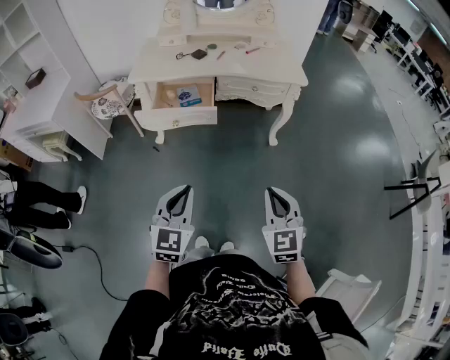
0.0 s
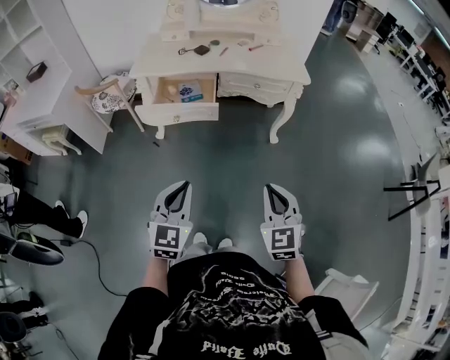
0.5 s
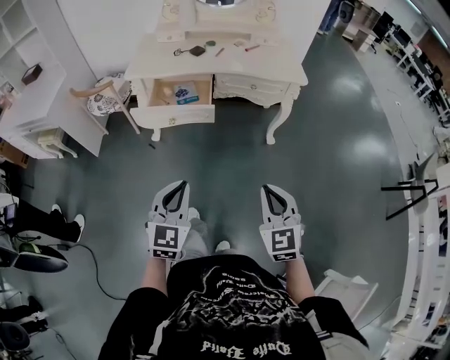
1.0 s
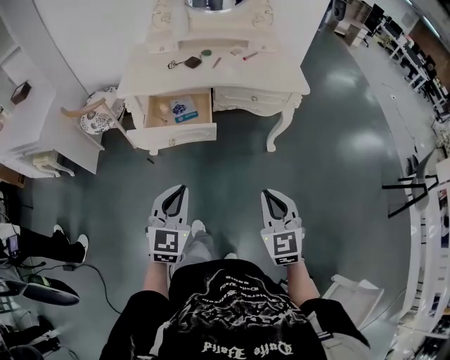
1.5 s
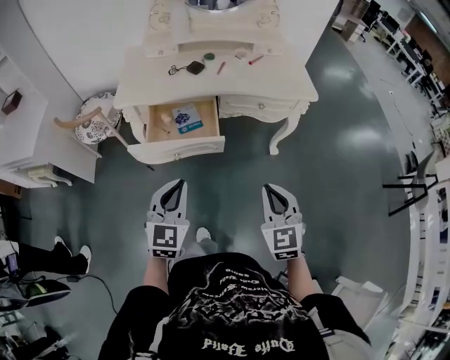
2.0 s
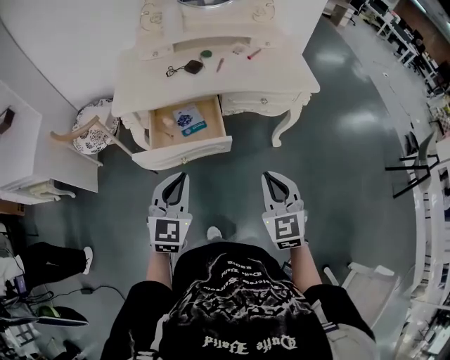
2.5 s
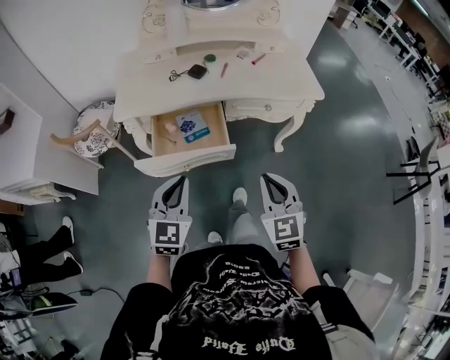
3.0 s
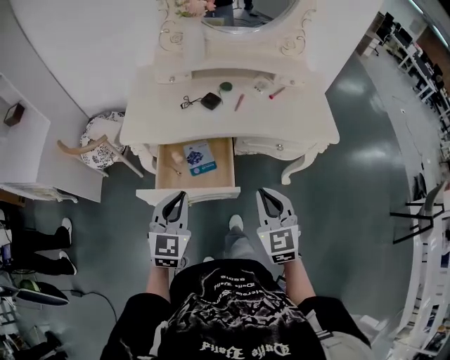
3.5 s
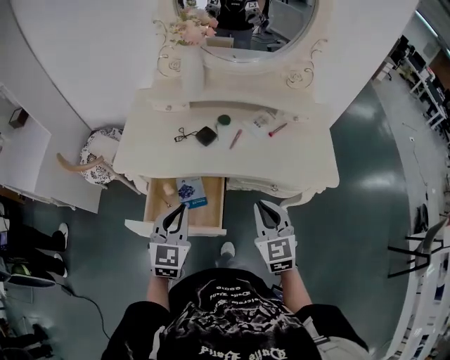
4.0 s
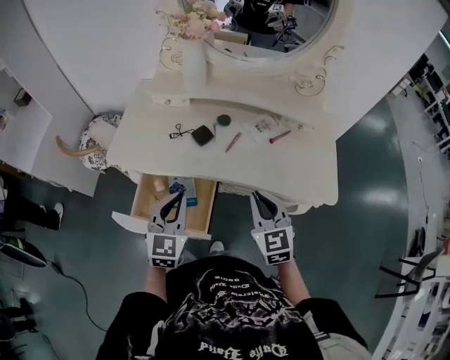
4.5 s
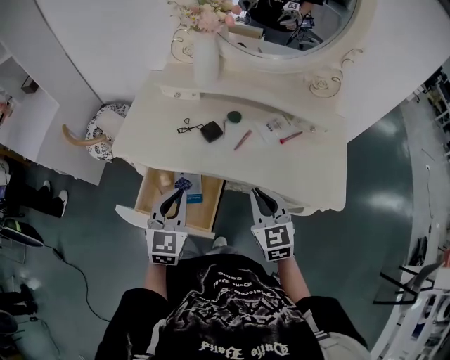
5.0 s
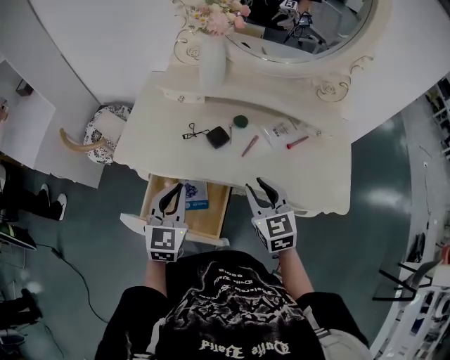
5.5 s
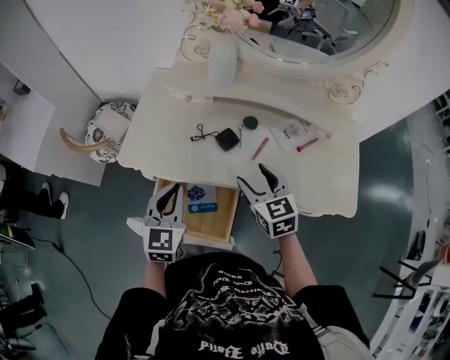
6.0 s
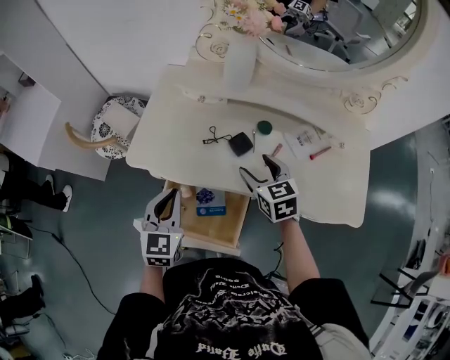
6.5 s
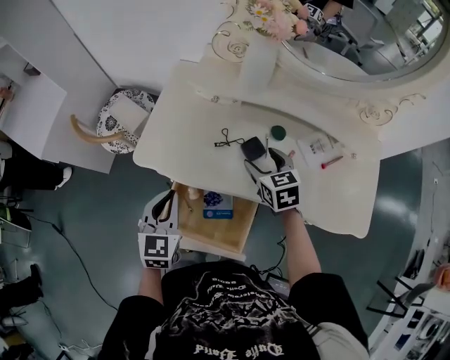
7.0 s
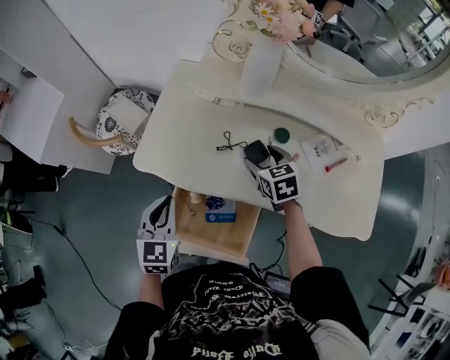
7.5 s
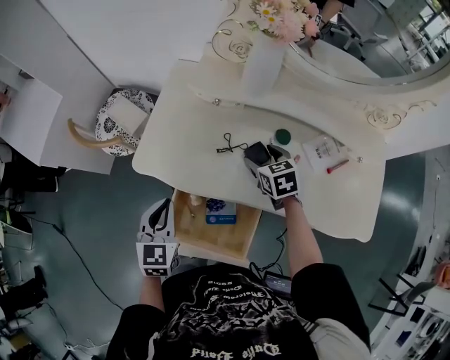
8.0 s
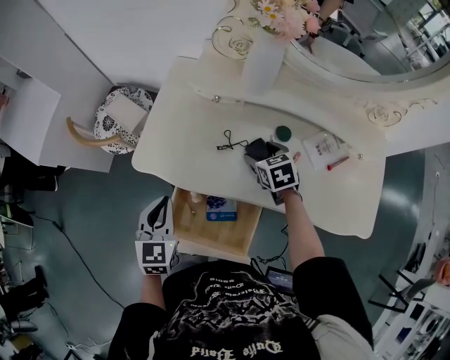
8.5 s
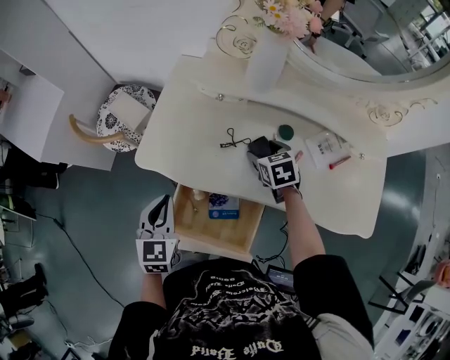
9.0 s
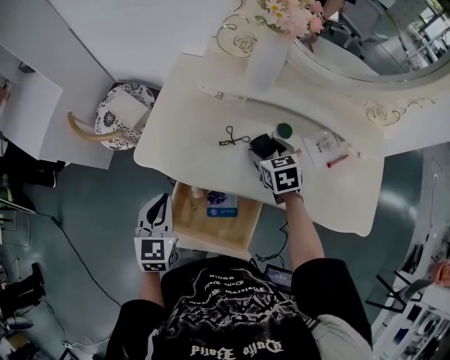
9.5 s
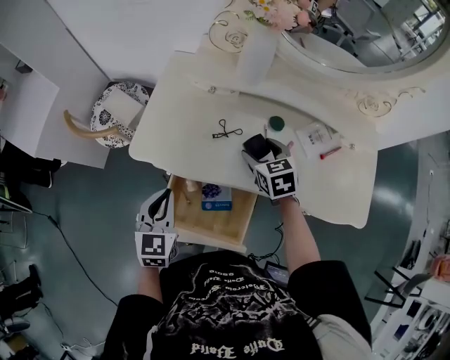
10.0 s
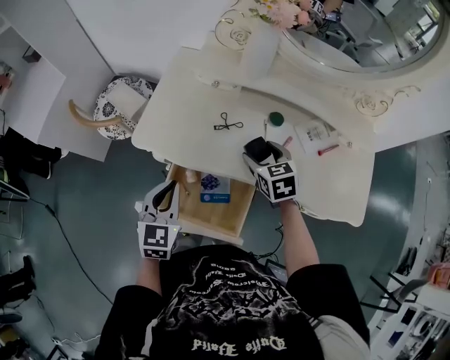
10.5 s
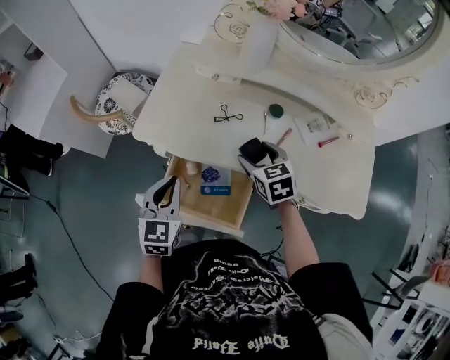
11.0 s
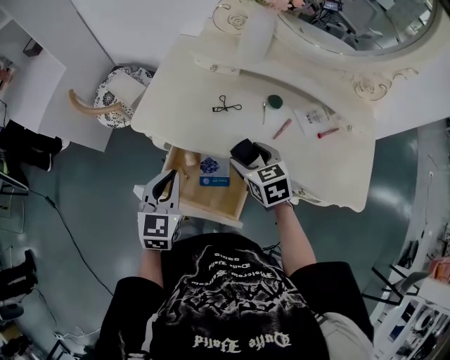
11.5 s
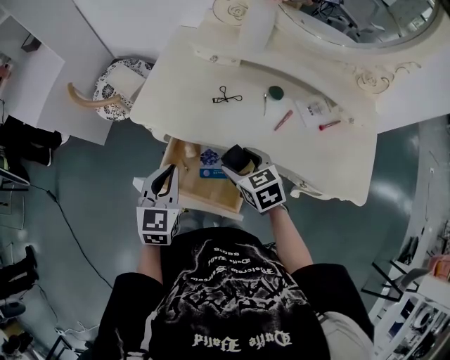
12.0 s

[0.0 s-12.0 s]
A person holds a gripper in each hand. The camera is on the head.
0.0 to 2.0 s: The grippers both shift forward and to the left by about 20 cm.
2.0 to 4.0 s: The grippers both shift forward by roughly 30 cm.
4.0 to 6.0 s: The left gripper heads forward, covering some 10 cm. The right gripper travels forward by roughly 20 cm, and opens its fingers.
6.0 to 8.0 s: The left gripper goes about 10 cm to the left. Meanwhile the right gripper moves forward and downward, some 15 cm.
8.0 to 10.0 s: The grippers move only a little.
10.0 to 12.0 s: The right gripper travels backward and to the left by about 15 cm. The left gripper shifts some 5 cm backward.

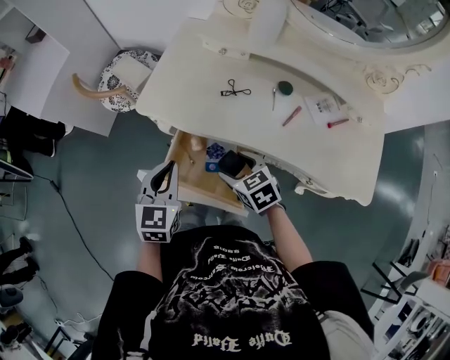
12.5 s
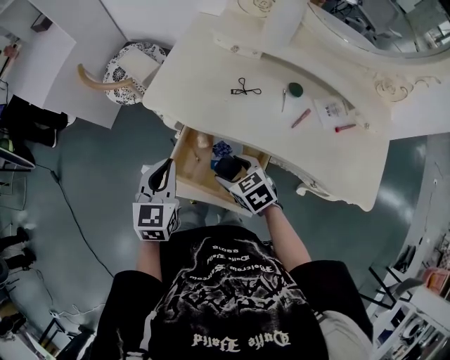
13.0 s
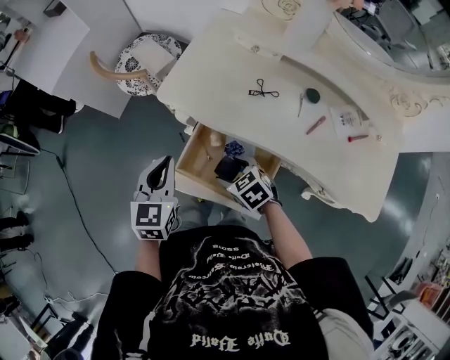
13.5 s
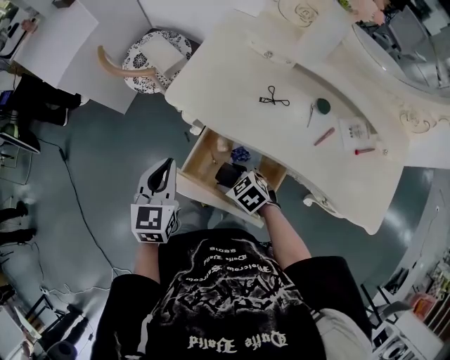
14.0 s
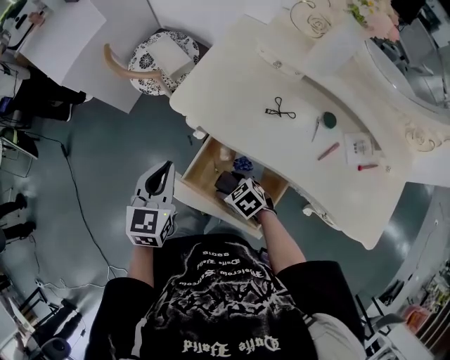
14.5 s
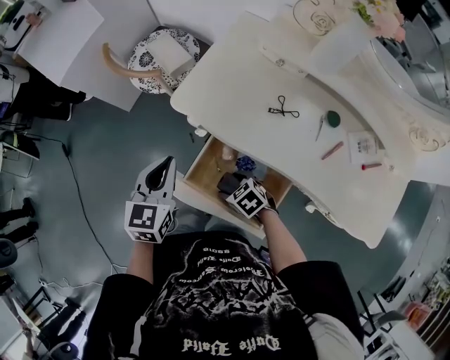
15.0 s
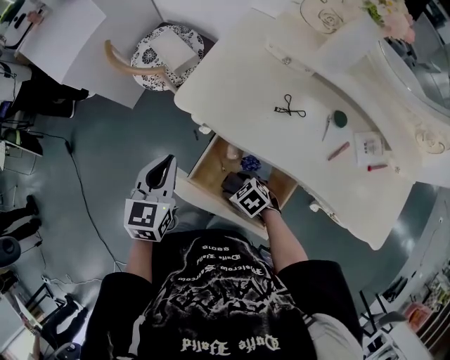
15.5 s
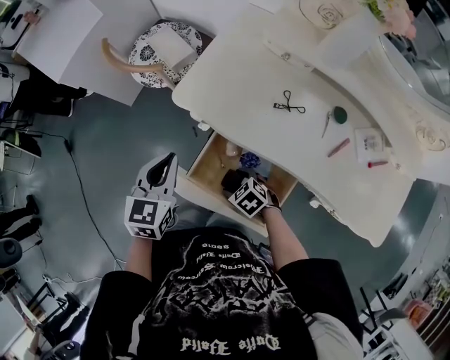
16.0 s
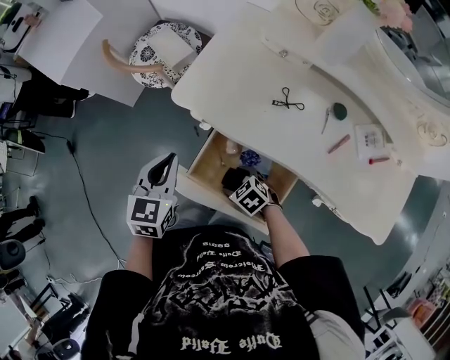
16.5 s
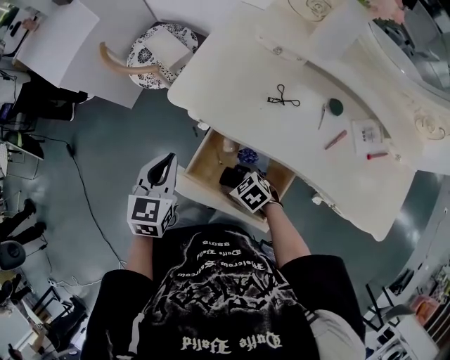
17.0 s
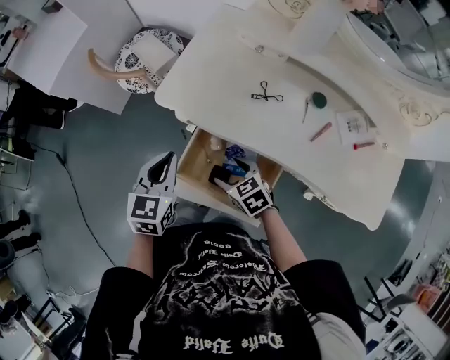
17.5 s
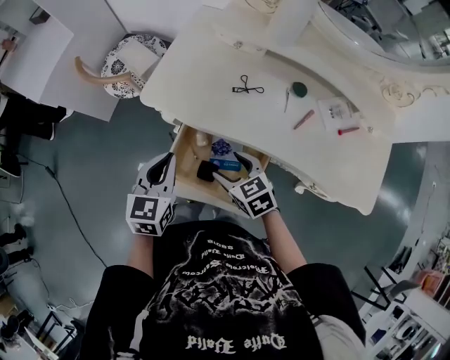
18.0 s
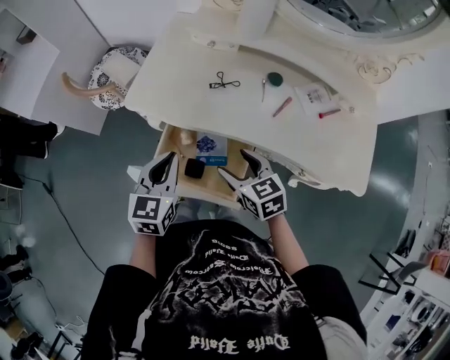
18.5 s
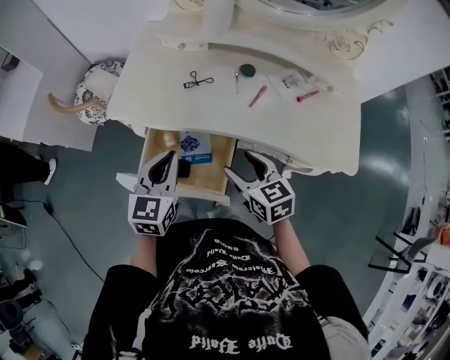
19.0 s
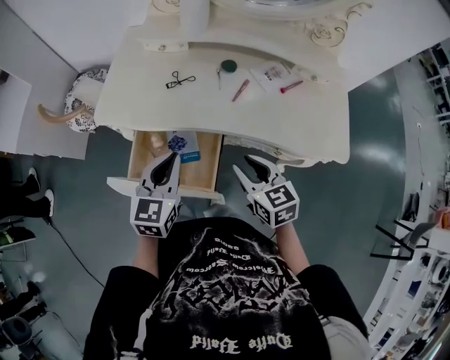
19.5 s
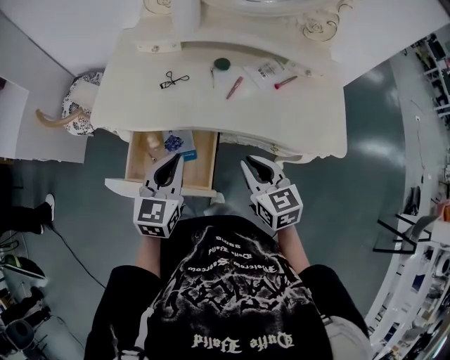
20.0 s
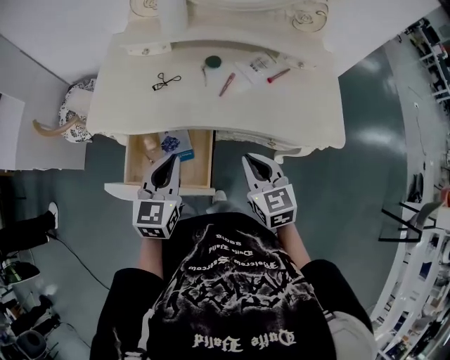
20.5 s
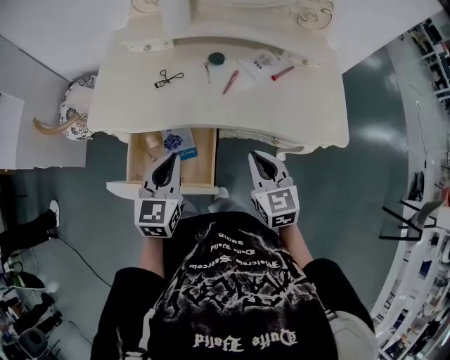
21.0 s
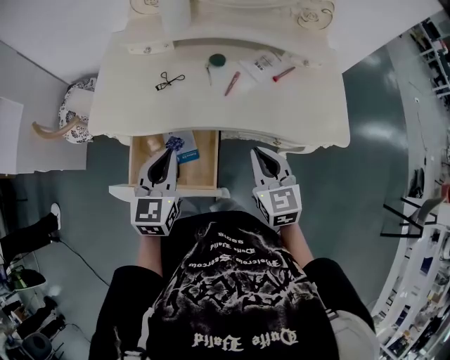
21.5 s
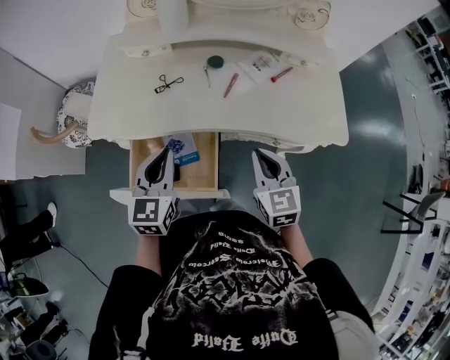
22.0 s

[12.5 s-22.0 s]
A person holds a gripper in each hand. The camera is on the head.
12.5 to 14.5 s: The left gripper goes some 10 cm to the left and forward. The right gripper moves downward and to the left, some 15 cm, and turns by about 30 degrees.
14.5 to 16.5 s: The grippers make only small movements.
16.5 to 18.0 s: The right gripper shifts about 15 cm upward and to the right, and changes its angle by approximately 30 degrees, while the left gripper moves to the right, roughly 5 cm.
18.0 to 20.0 s: The left gripper moves approximately 20 cm, and rotates roughly 20 degrees. The right gripper ends up about 25 cm from where it was, turns by about 30 degrees, and closes its fingers.
20.0 to 22.0 s: The grippers stay close to where they were, moving slightly.

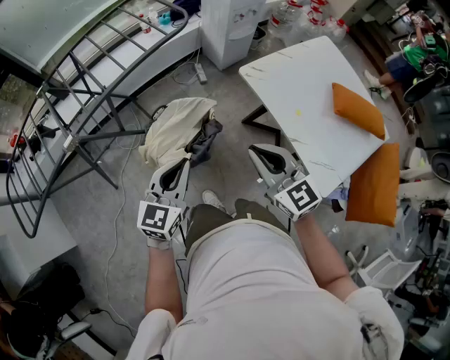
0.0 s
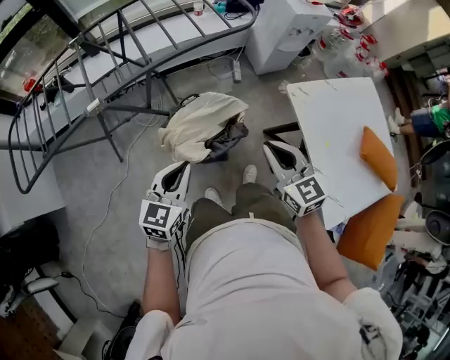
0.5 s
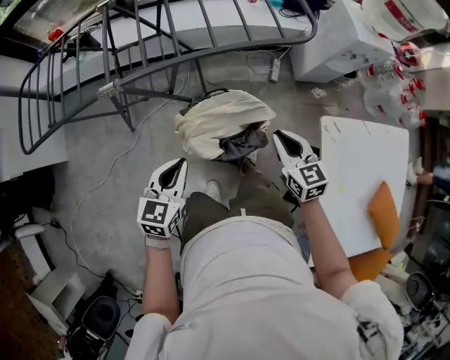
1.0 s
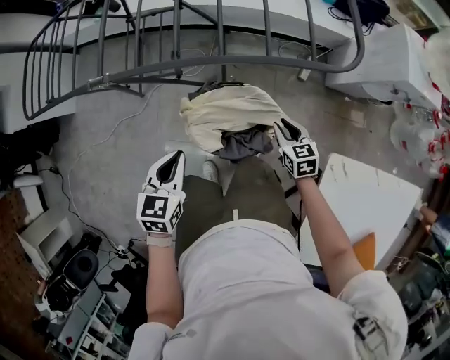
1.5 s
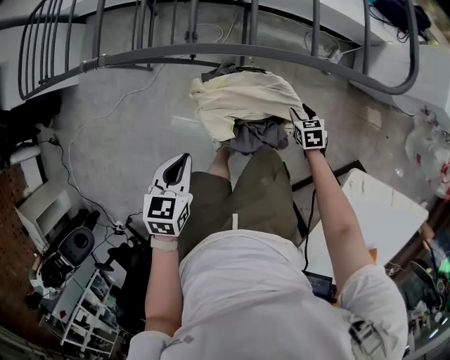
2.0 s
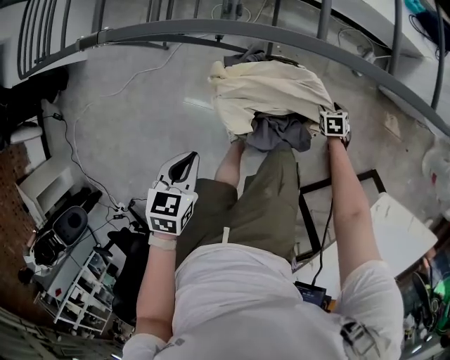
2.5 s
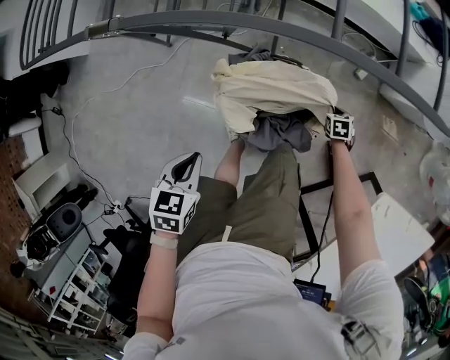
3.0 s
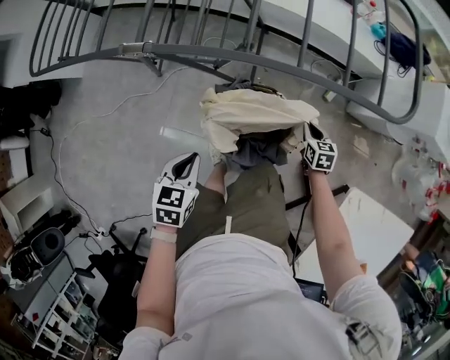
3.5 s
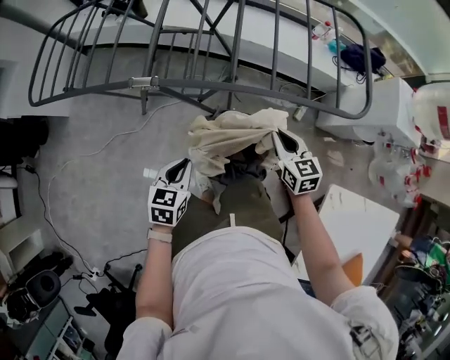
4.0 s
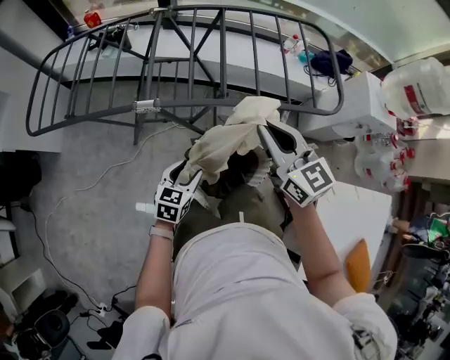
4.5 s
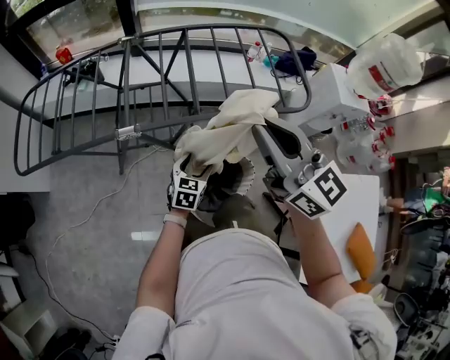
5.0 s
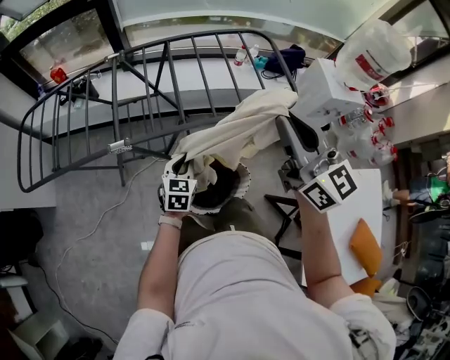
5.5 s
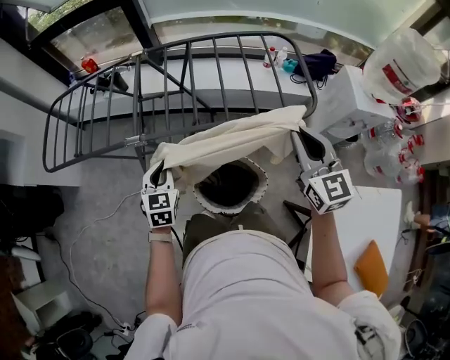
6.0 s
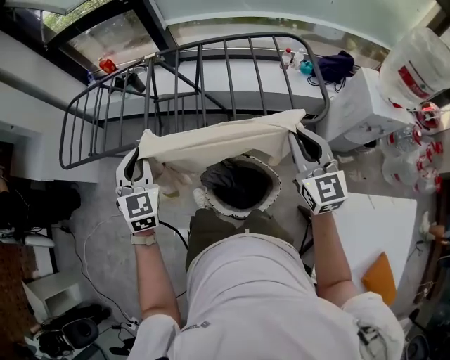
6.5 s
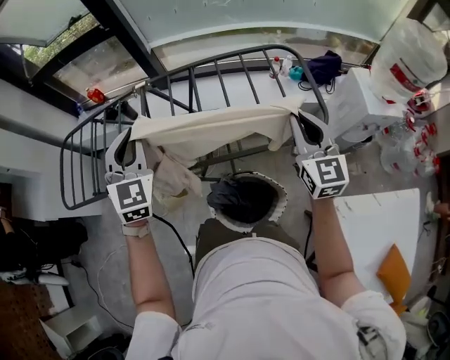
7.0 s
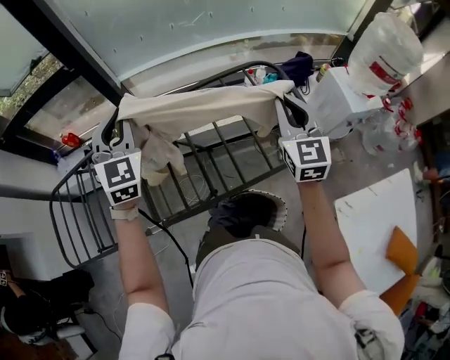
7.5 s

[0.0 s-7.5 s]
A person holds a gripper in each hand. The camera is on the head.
0.0 to 2.0 s: The right gripper travels downward by some 50 cm, angles its fingers downward, by some 50 degrees, and opens up; the left gripper shifts roughly 20 cm downward, and tips its fingers downward by roughly 40 degrees.
2.0 to 4.0 s: The right gripper shifts approximately 30 cm upward, turns by roughly 30 degrees, and closes; the left gripper goes downward and returns, roughly 5 cm each way.
4.0 to 5.5 s: The left gripper is displaced forward, to the right and upward by about 15 cm, swivels approximately 20 degrees, and opens, then closes again. Meanwhile the right gripper travels upward by roughly 40 cm, and tilts its fingers approximately 40 degrees upward.
5.5 to 7.5 s: The left gripper moves forward and upward, about 50 cm, and swivels some 40 degrees; the right gripper goes about 25 cm forward, and rotates roughly 40 degrees.
